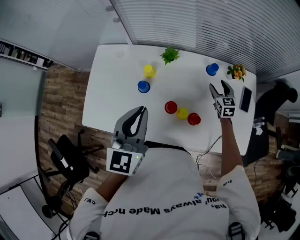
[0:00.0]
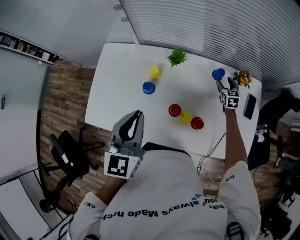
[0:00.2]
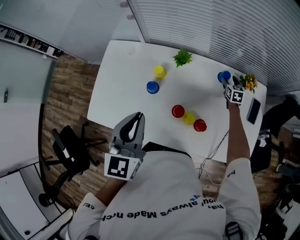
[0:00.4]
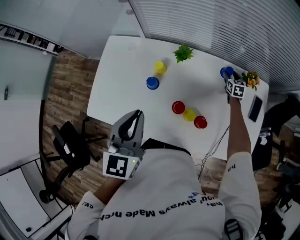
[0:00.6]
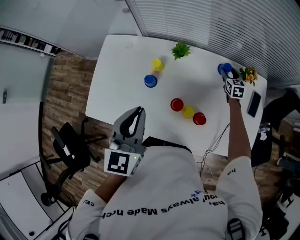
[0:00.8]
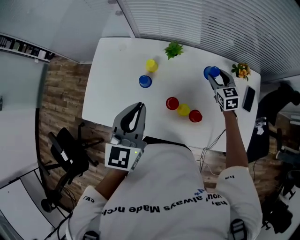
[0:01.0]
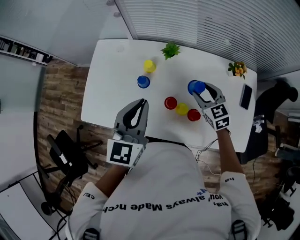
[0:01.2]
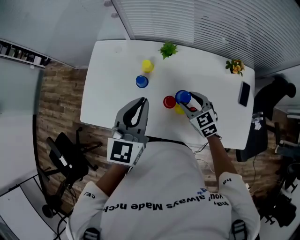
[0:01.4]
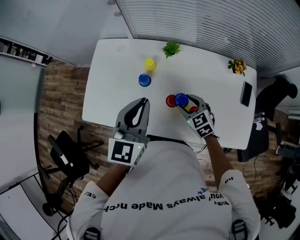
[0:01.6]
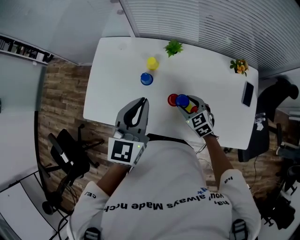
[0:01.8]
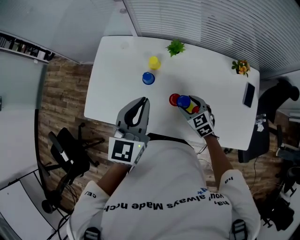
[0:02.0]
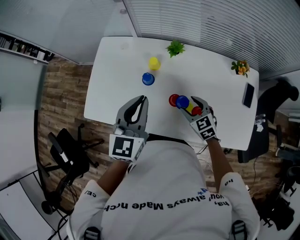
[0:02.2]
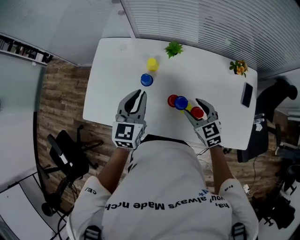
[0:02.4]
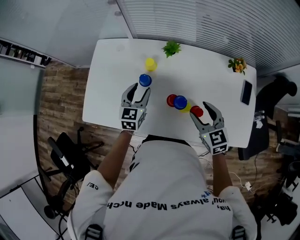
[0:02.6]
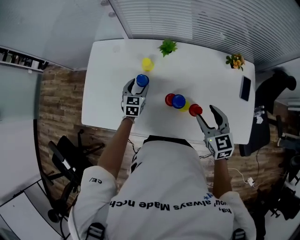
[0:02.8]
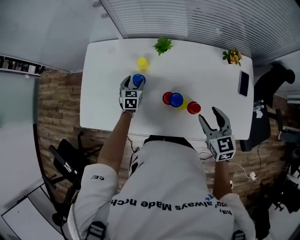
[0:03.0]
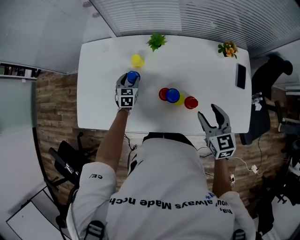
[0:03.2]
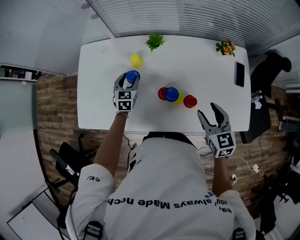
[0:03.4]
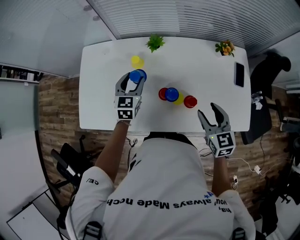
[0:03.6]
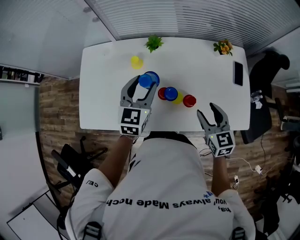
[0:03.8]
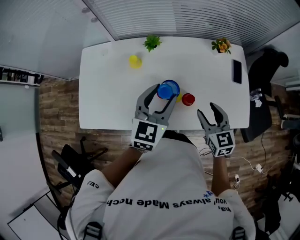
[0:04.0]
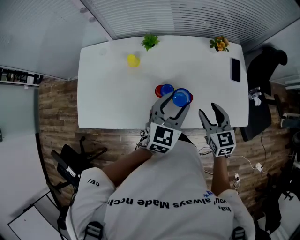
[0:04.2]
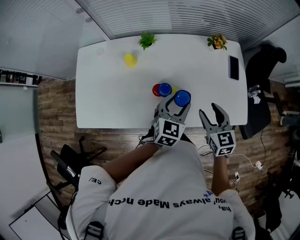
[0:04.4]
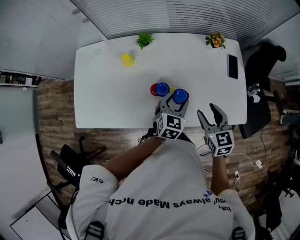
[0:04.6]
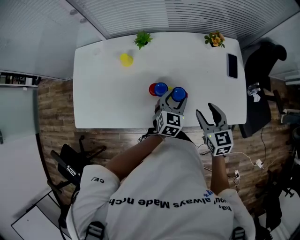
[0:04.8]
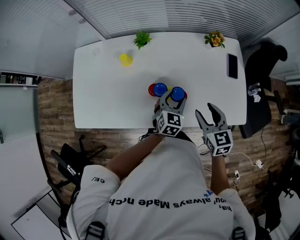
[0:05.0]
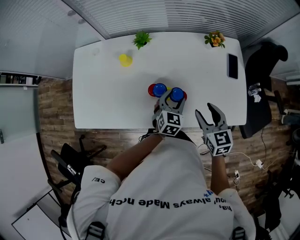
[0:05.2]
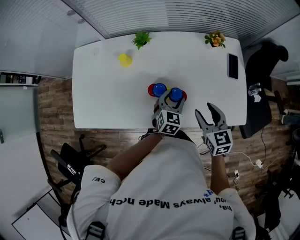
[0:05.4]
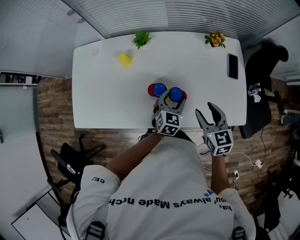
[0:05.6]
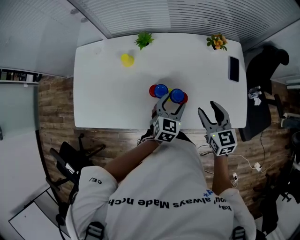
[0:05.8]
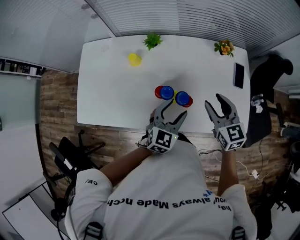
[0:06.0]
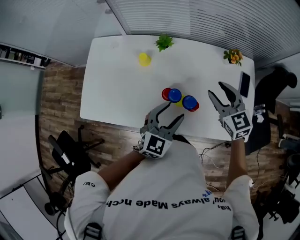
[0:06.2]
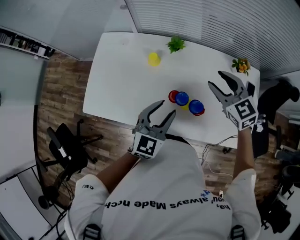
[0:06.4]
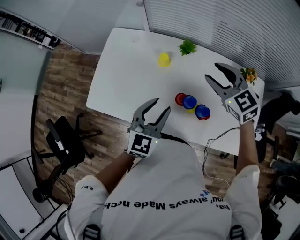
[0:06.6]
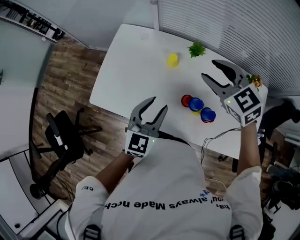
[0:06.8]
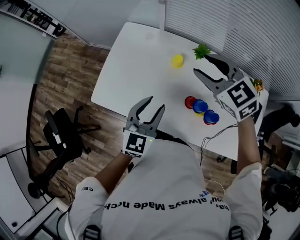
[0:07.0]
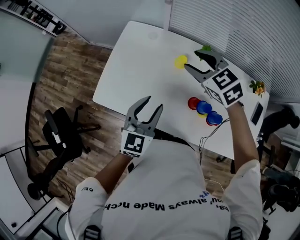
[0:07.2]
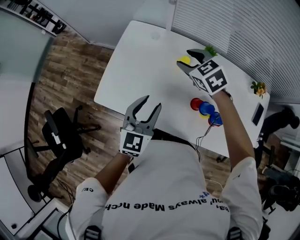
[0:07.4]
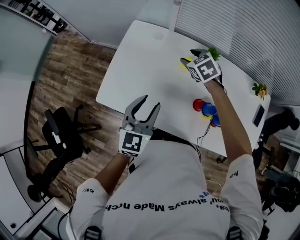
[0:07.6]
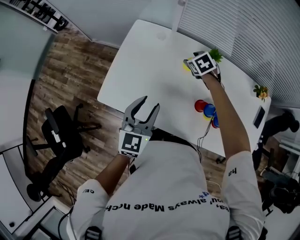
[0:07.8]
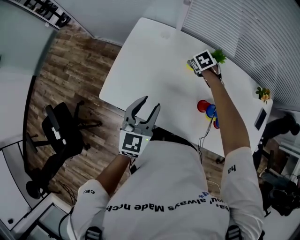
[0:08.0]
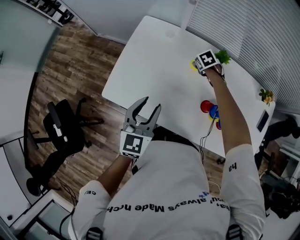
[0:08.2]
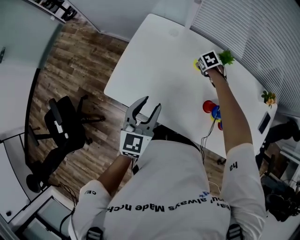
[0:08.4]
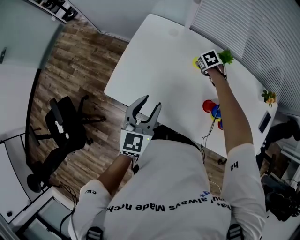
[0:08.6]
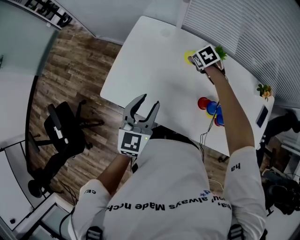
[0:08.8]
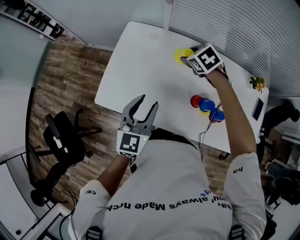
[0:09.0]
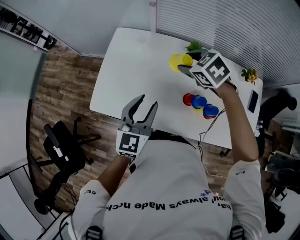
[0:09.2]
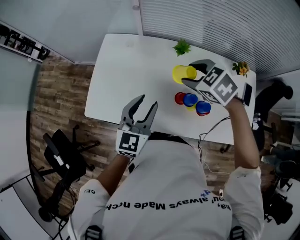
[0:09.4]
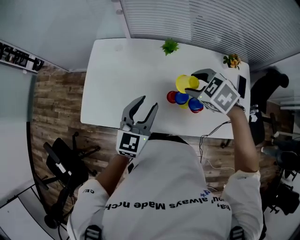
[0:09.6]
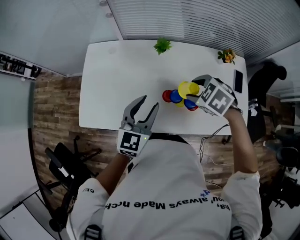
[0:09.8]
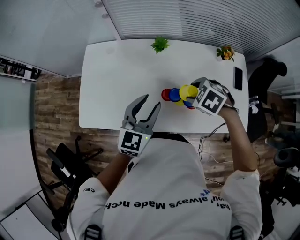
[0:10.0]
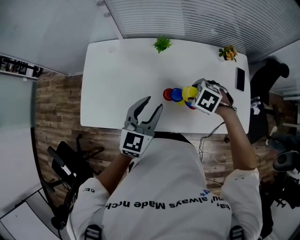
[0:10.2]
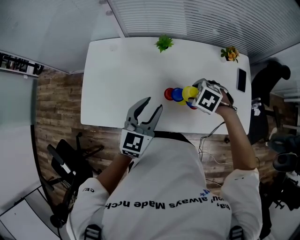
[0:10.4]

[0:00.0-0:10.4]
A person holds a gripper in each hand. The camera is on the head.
0:00.0 to 0:01.4: The right gripper goes approximately 25 cm to the left and backward, and changes its angle by roughly 30 degrees.
0:01.4 to 0:03.0: The right gripper moves backward and to the right, some 10 cm, and turns by approximately 20 degrees. Meanwhile the left gripper travels downward and forward by about 35 cm, changes its angle by some 30 degrees, and opens up.
0:03.0 to 0:04.4: The left gripper is displaced to the right, upward and backward by roughly 35 cm, and swivels approximately 30 degrees. Meanwhile the right gripper travels to the right by about 5 cm.
0:04.4 to 0:06.0: The left gripper reaches about 10 cm downward, then returns; the right gripper travels forward by approximately 5 cm.
0:06.0 to 0:07.4: The right gripper goes upward and returns, about 10 cm each way, and changes its angle by approximately 40 degrees; the left gripper ends up about 35 cm from where it was, and turns by about 30 degrees.
0:07.4 to 0:09.0: The right gripper goes downward and returns, roughly 25 cm each way.
0:09.0 to 0:10.4: The left gripper changes place by about 15 cm, and swivels roughly 20 degrees. The right gripper moves approximately 10 cm upward and comes back.

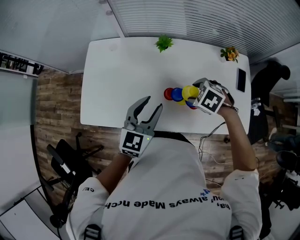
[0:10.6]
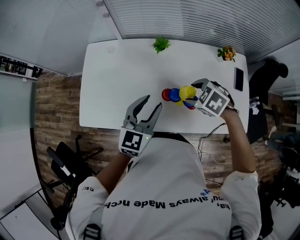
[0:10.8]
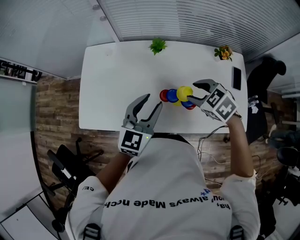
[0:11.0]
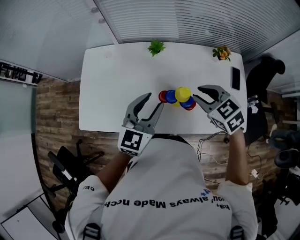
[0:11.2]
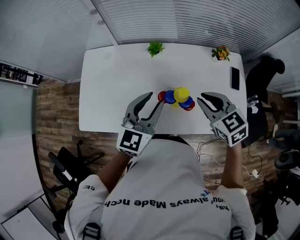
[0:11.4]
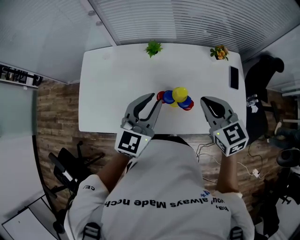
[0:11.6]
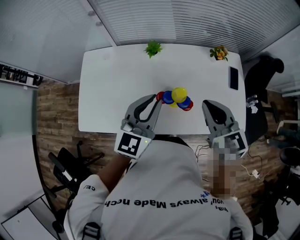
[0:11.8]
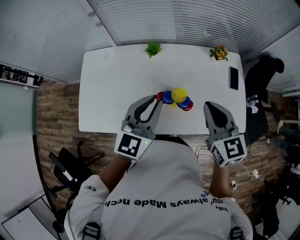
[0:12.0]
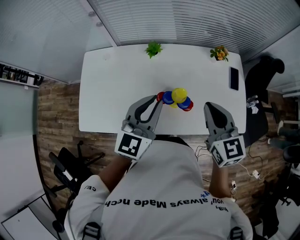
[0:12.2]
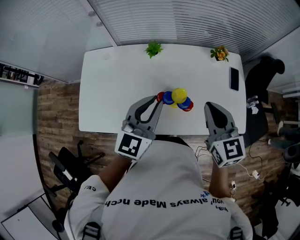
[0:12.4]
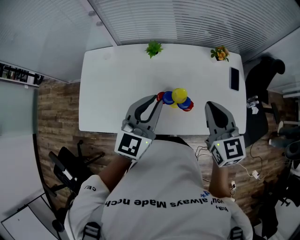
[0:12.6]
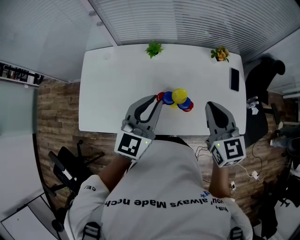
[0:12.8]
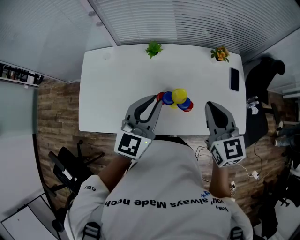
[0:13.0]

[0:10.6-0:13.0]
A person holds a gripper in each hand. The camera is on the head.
0:10.6 to 0:11.8: The left gripper shifts roughly 10 cm upward, and closes its fingers, while the right gripper travels upward by approximately 15 cm, tips its fingers upward by approximately 50 degrees, and closes up.
0:11.8 to 0:13.0: The grippers move only a little.

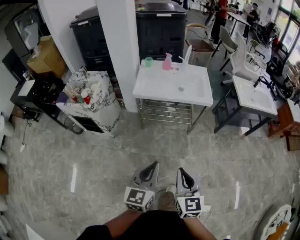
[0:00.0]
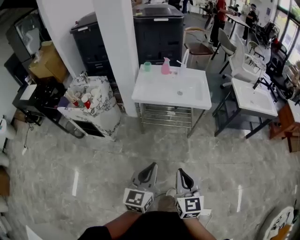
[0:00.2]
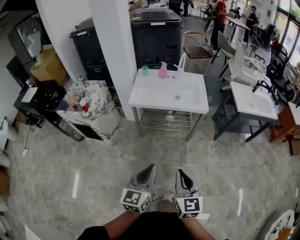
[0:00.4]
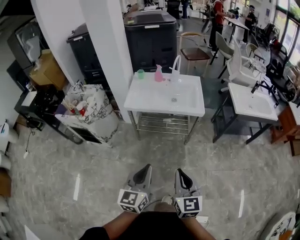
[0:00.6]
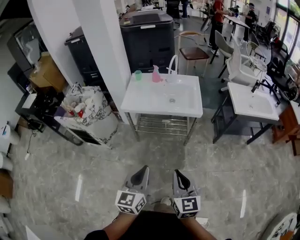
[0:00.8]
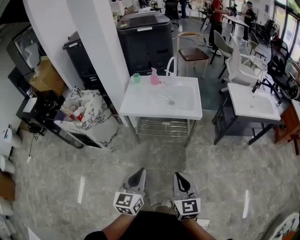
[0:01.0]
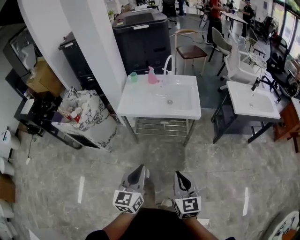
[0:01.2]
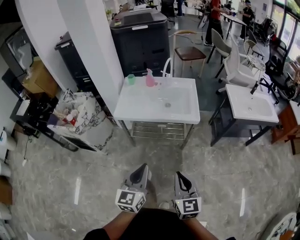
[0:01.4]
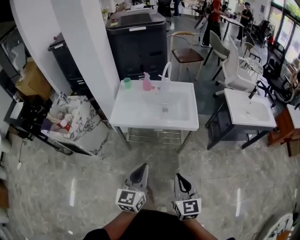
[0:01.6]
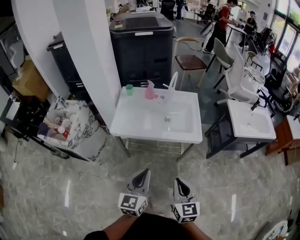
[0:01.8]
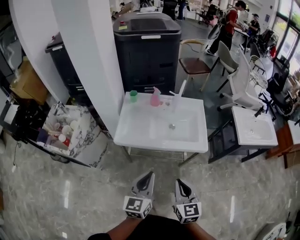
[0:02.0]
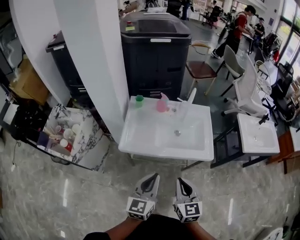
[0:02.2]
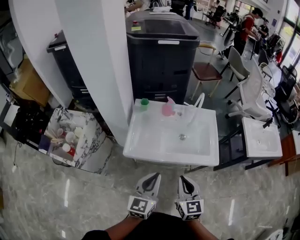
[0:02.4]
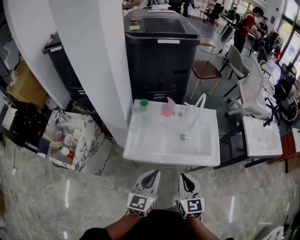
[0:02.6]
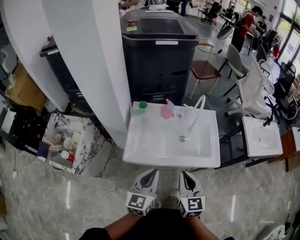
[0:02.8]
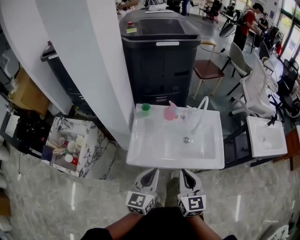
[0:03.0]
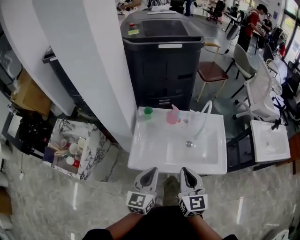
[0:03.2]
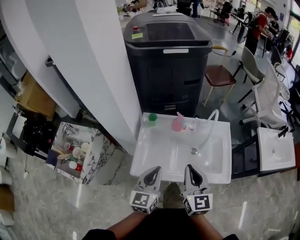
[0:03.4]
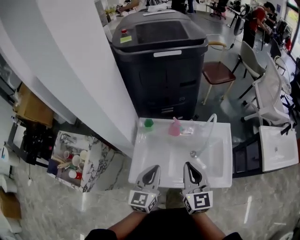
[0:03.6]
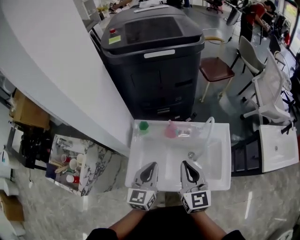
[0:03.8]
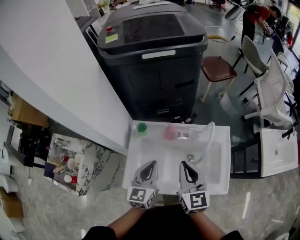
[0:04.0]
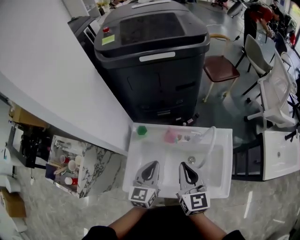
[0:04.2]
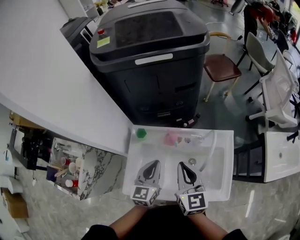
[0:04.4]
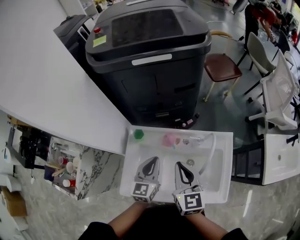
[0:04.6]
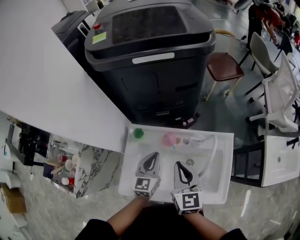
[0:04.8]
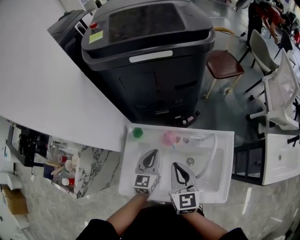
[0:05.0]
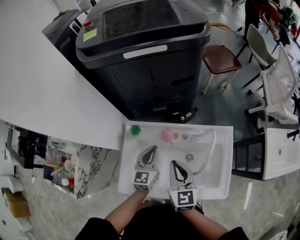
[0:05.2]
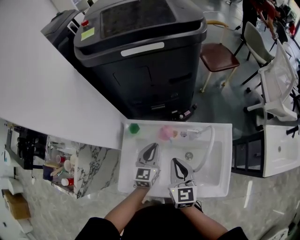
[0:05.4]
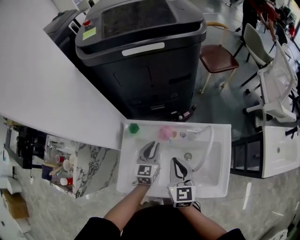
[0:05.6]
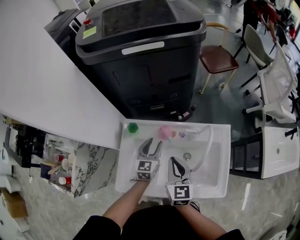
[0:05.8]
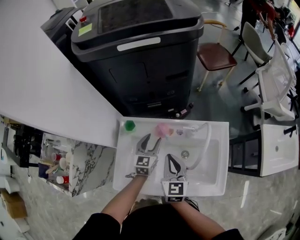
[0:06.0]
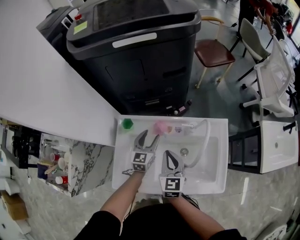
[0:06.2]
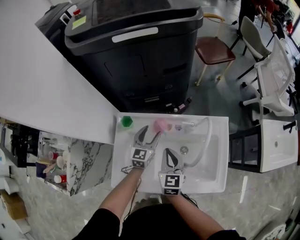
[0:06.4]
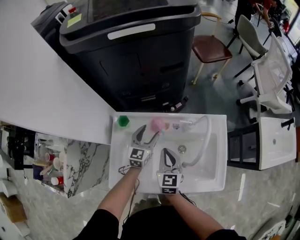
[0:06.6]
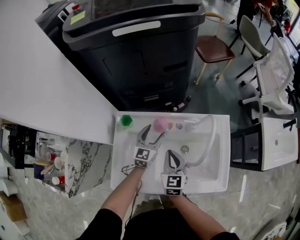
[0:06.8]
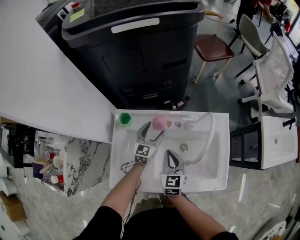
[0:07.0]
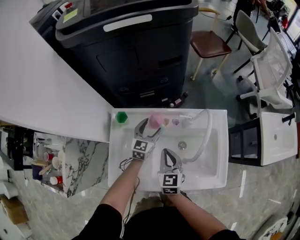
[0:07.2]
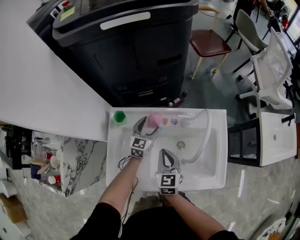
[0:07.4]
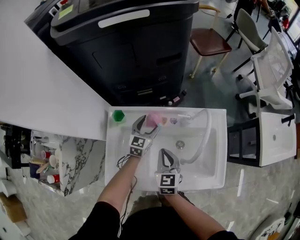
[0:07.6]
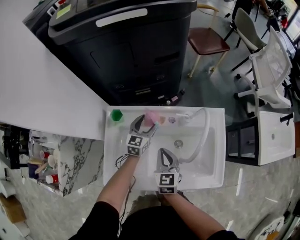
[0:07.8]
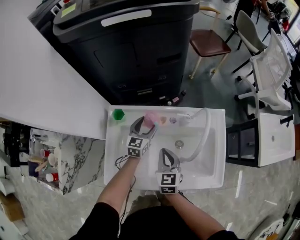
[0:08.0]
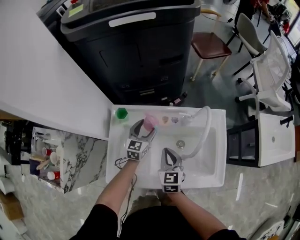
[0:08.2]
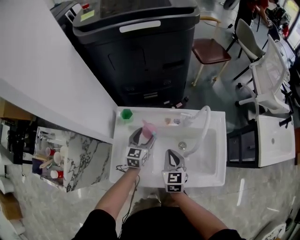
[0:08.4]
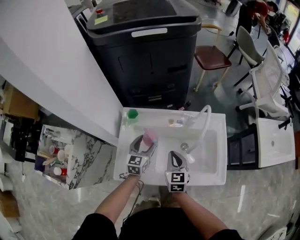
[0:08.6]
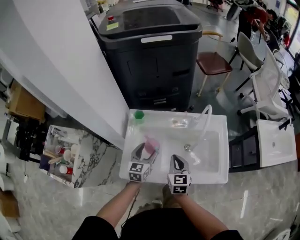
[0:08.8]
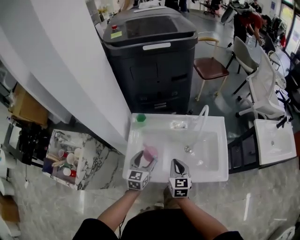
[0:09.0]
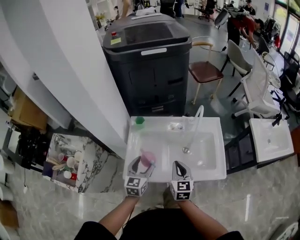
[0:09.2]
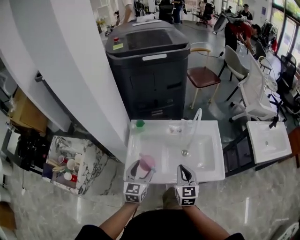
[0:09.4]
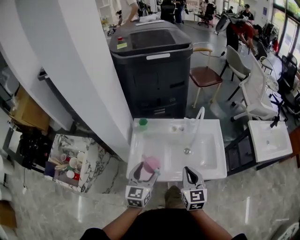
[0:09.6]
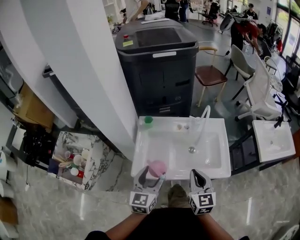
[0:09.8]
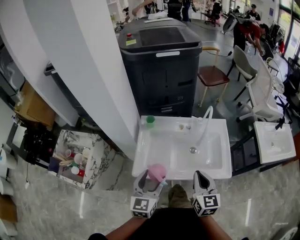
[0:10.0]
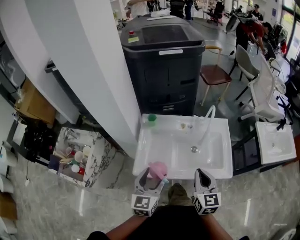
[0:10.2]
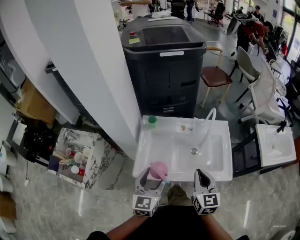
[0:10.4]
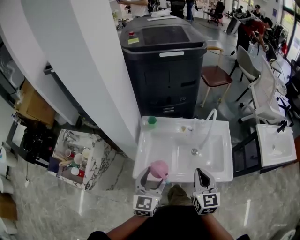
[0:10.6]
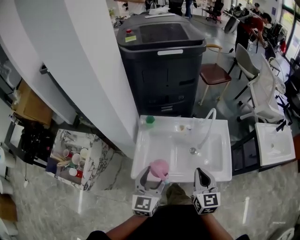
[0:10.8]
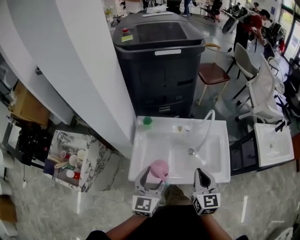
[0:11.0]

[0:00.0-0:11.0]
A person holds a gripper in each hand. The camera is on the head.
0:00.0 to 0:01.6: Both grippers travel together forward and to the right, roughly 25 cm.
0:01.6 to 0:03.2: The grippers both shift forward and to the left by about 40 cm.
0:03.2 to 0:04.8: Both grippers travel together forward, some 30 cm.
0:04.8 to 0:06.2: The right gripper travels downward by roughly 10 cm. The left gripper shifts some 10 cm downward and forward, and opens up.
0:06.2 to 0:07.8: Both grippers travel together downward, roughly 5 cm.
0:07.8 to 0:09.4: The left gripper travels backward and upward by some 40 cm. Meanwhile the right gripper is displaced backward and upward by roughly 25 cm.
0:09.4 to 0:11.0: Both grippers move upward, approximately 5 cm. The left gripper goes backward and returns, some 10 cm each way.
